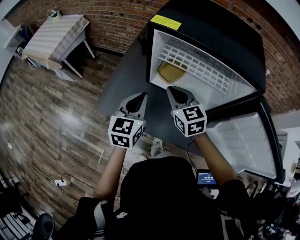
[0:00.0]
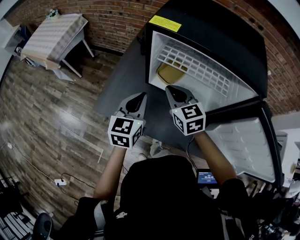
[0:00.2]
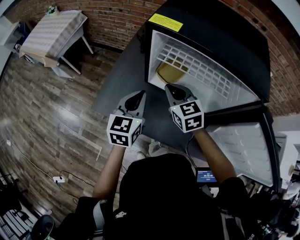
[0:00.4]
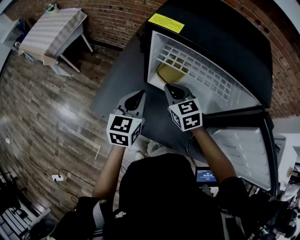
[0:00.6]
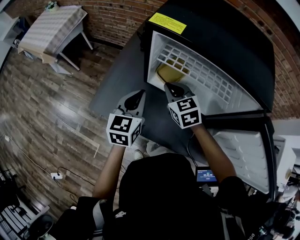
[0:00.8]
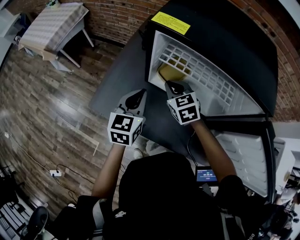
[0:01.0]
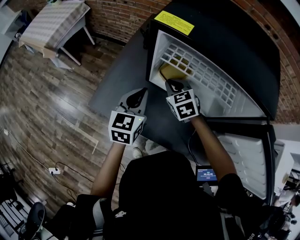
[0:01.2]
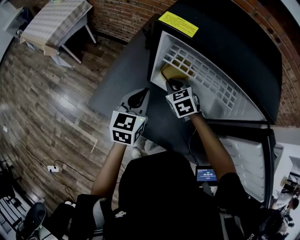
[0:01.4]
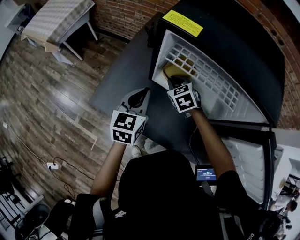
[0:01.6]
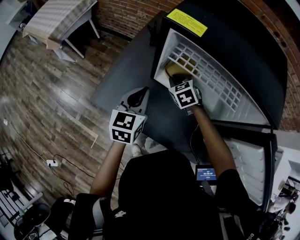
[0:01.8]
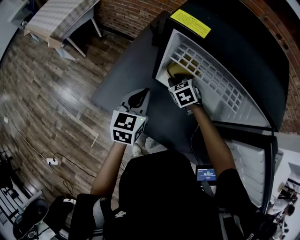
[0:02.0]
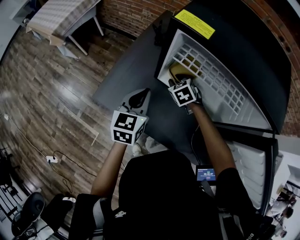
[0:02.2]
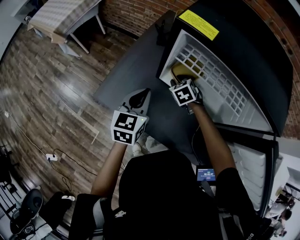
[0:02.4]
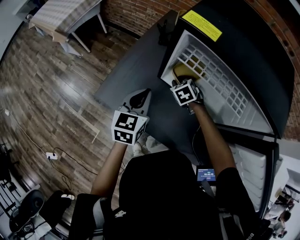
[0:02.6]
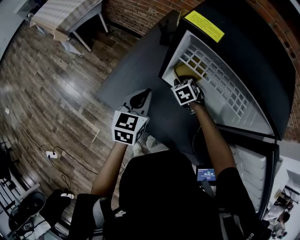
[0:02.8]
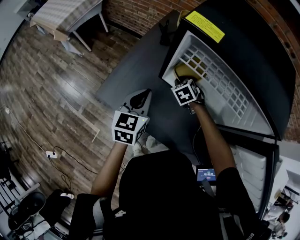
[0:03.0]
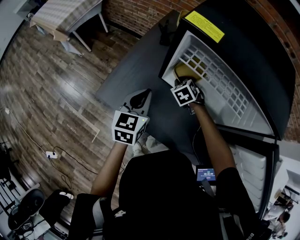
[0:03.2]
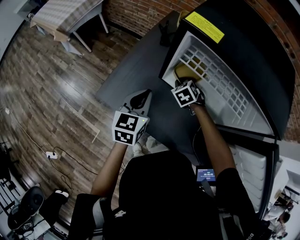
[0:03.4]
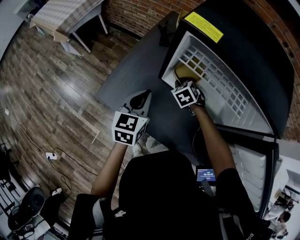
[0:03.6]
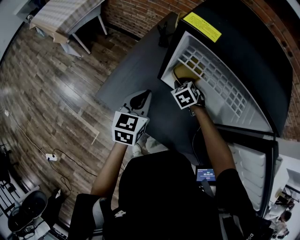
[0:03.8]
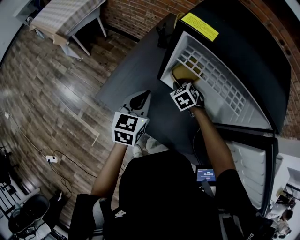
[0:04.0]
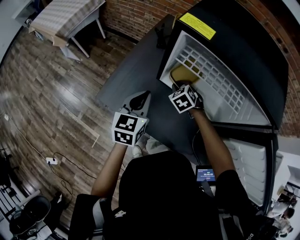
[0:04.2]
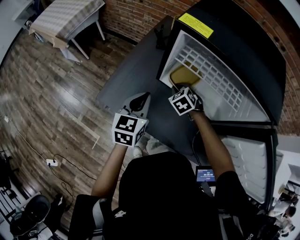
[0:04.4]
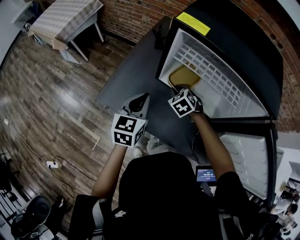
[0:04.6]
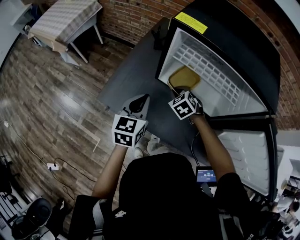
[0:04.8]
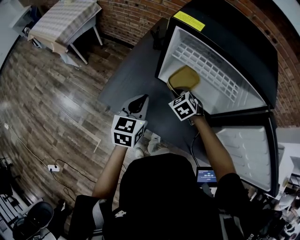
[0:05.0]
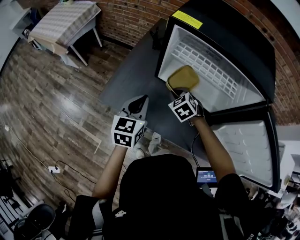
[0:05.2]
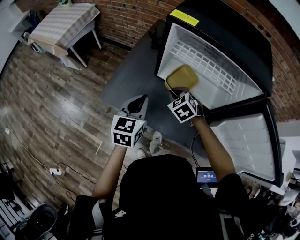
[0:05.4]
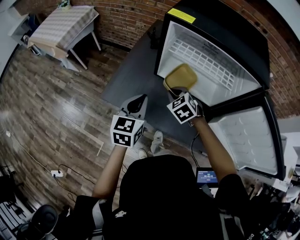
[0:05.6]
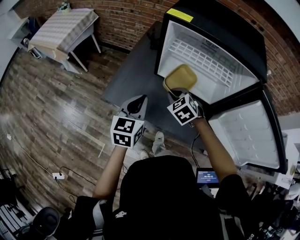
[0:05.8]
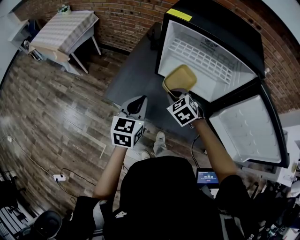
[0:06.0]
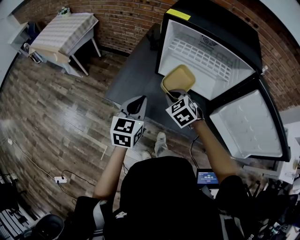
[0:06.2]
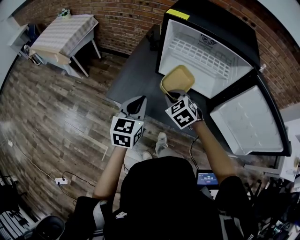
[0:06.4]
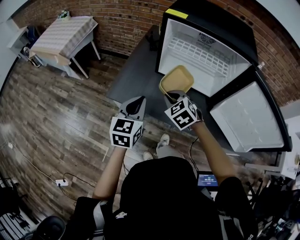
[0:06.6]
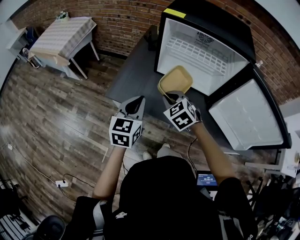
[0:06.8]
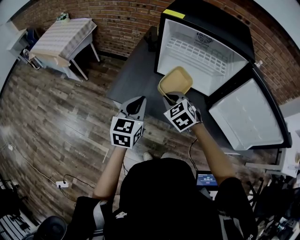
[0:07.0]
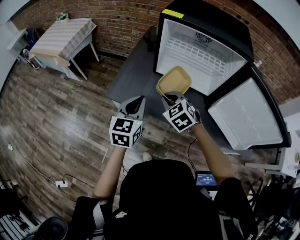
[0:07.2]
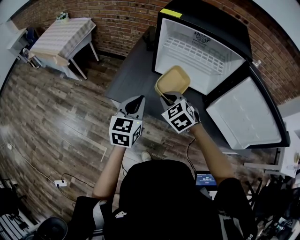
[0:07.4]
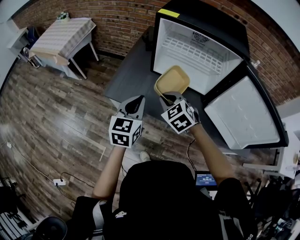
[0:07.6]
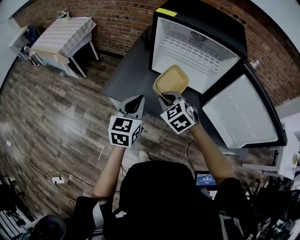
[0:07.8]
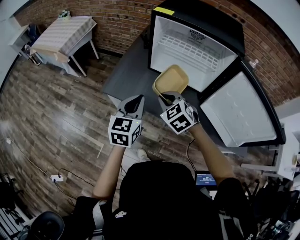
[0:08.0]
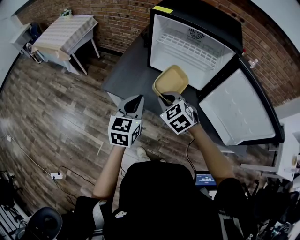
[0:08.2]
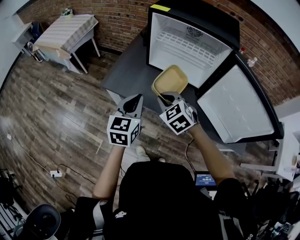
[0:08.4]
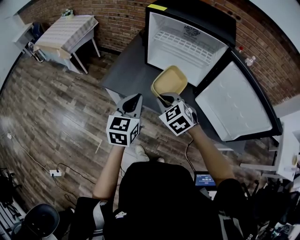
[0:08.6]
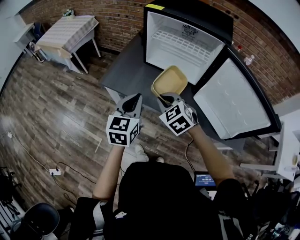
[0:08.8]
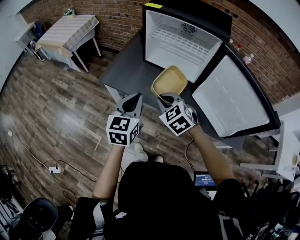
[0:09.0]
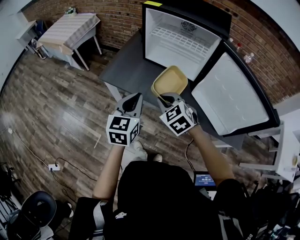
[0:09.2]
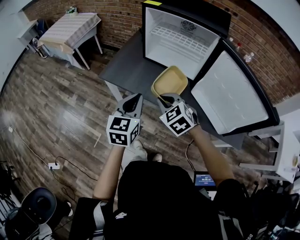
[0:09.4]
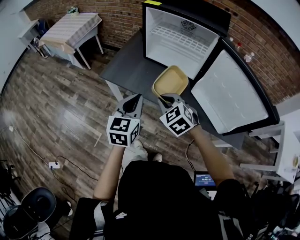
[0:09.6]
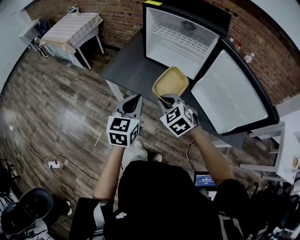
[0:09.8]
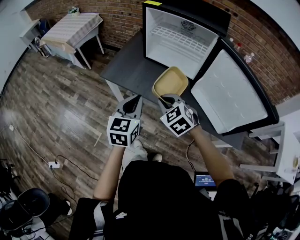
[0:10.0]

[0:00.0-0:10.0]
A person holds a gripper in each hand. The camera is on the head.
0:00.0 to 0:01.4: The left gripper moves forward, about 5 cm. The right gripper travels downward and forward by about 15 cm, and rotates about 20 degrees.
0:01.4 to 0:02.8: The right gripper heads downward, covering approximately 10 cm.
0:02.8 to 0:04.2: The grippers move only a little.
0:04.2 to 0:05.8: The left gripper shifts approximately 10 cm backward. The right gripper shifts about 15 cm backward and upward.
0:05.8 to 0:07.2: Both grippers move backward, approximately 10 cm.
0:07.2 to 0:08.6: Both grippers travel together backward and to the right, some 10 cm.
0:08.6 to 0:10.0: The grippers both shift backward by approximately 10 cm.

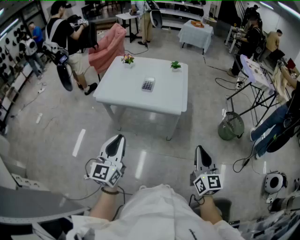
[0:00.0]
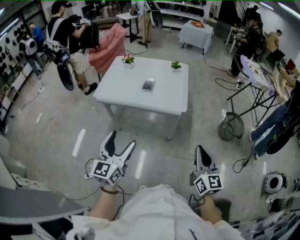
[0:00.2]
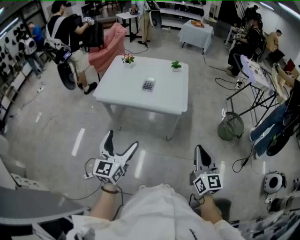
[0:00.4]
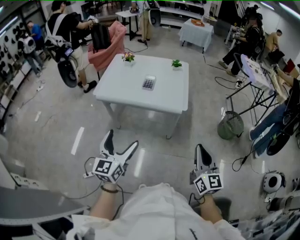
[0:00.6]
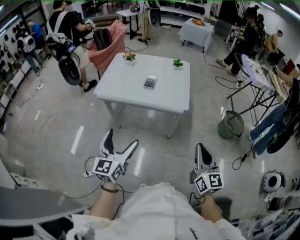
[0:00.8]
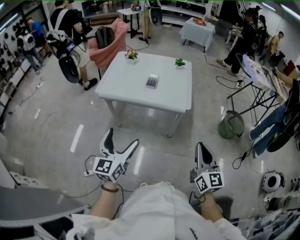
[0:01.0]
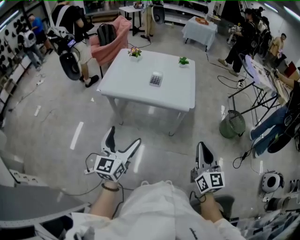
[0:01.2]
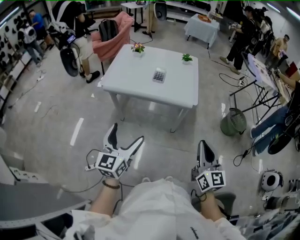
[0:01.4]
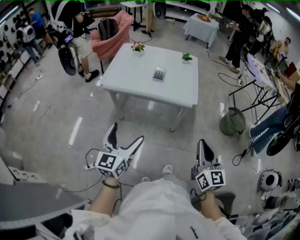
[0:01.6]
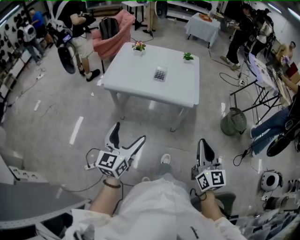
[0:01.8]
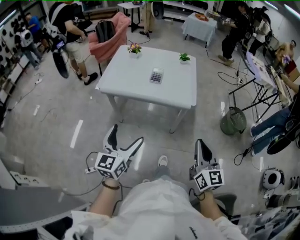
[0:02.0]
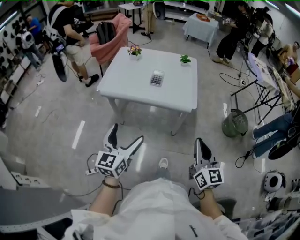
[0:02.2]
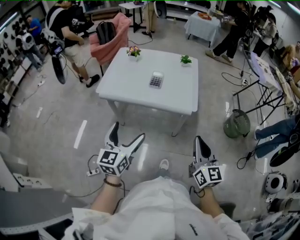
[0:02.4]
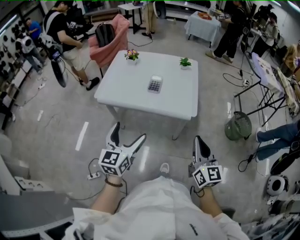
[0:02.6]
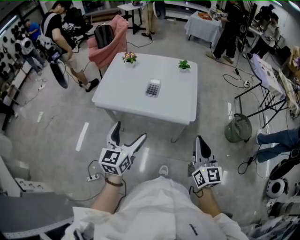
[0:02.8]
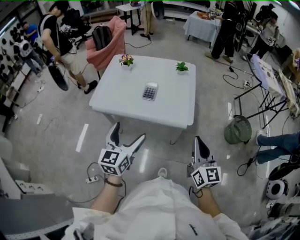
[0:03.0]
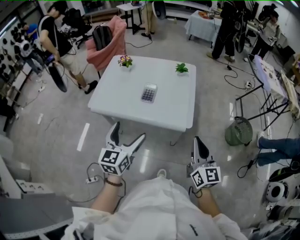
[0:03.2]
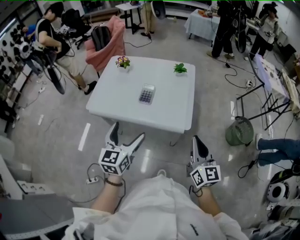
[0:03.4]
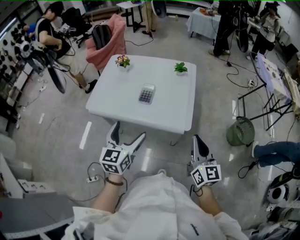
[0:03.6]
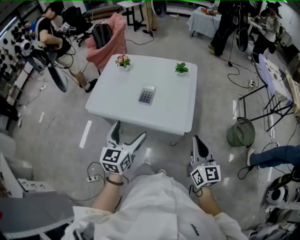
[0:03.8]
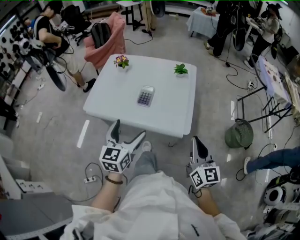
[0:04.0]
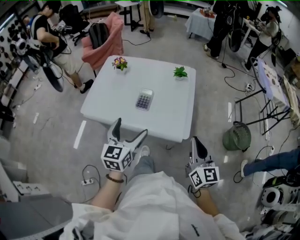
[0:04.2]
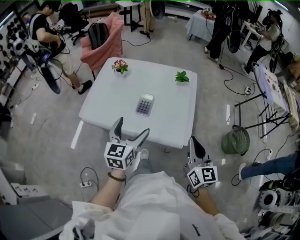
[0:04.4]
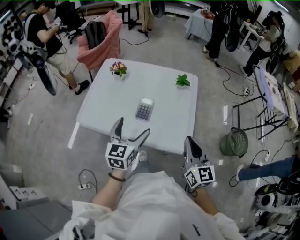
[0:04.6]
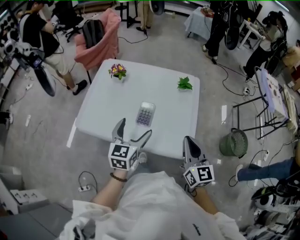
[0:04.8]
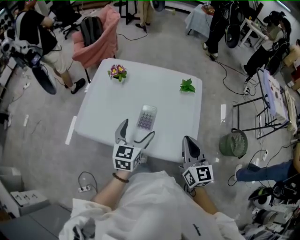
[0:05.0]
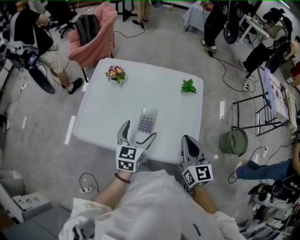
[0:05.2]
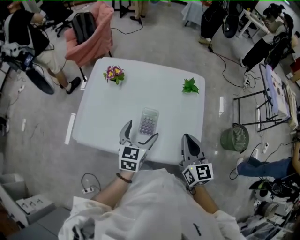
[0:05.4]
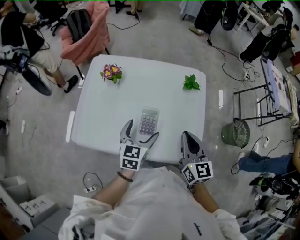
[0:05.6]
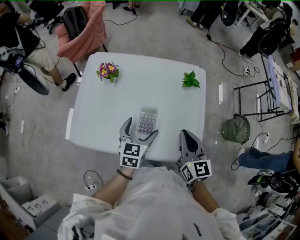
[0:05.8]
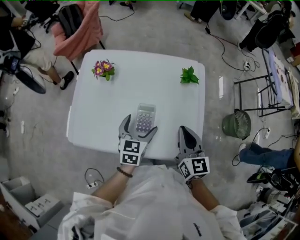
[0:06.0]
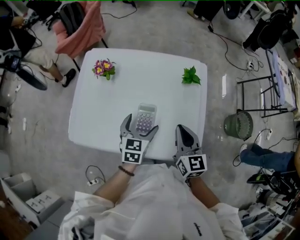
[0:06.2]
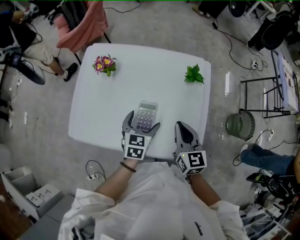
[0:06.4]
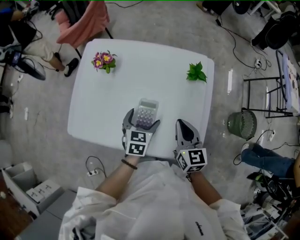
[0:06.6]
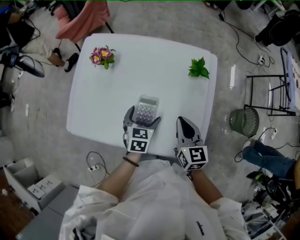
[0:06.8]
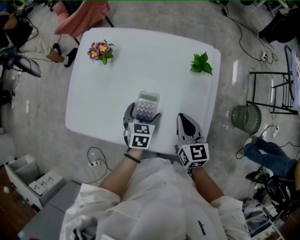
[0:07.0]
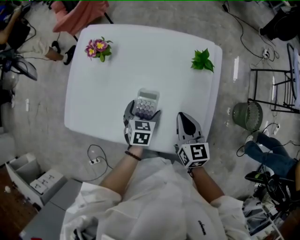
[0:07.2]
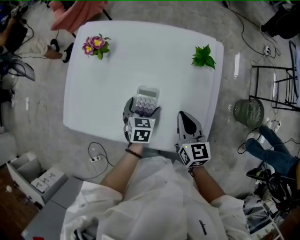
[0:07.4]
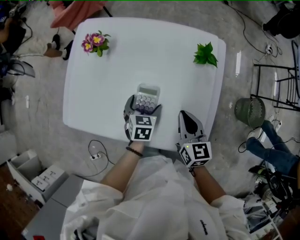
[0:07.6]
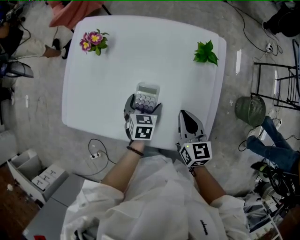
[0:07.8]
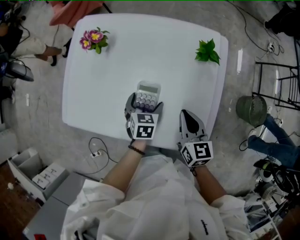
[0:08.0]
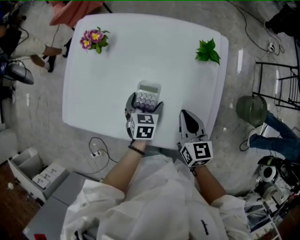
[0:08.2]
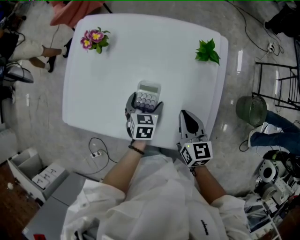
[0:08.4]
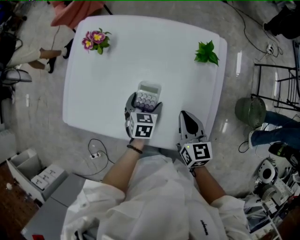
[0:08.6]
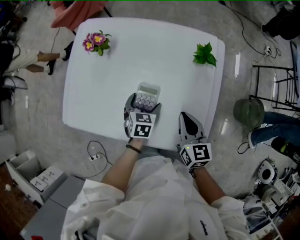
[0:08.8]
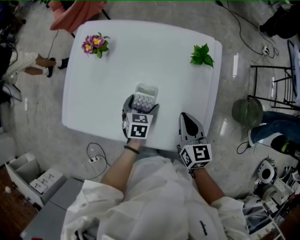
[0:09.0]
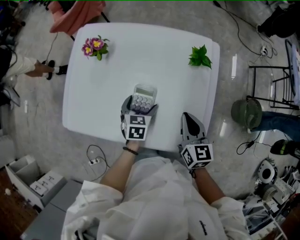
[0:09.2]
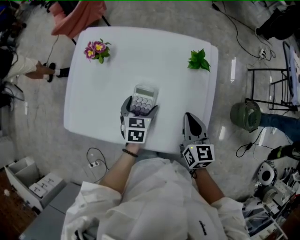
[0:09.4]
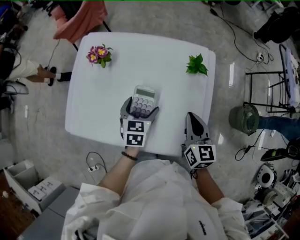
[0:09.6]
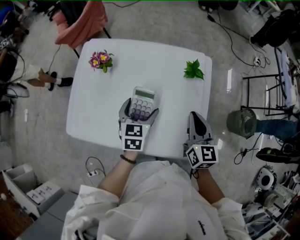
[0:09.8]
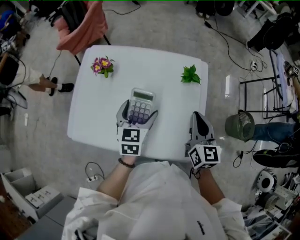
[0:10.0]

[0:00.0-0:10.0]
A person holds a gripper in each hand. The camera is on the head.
0:00.0 to 0:01.4: The grippers both shift to the left by about 10 cm. The left gripper opens its fingers.
0:01.4 to 0:02.8: The two grippers go about 15 cm forward.
0:02.8 to 0:04.2: The two grippers go about 15 cm forward.
0:04.2 to 0:05.8: The right gripper travels forward and to the left by some 30 cm. Meanwhile the left gripper goes some 30 cm forward and downward.
0:05.8 to 0:07.2: The right gripper travels downward and forward by about 10 cm. Meanwhile the left gripper is displaced downward by approximately 15 cm, and changes its angle by some 20 degrees.
0:07.2 to 0:08.6: The grippers make only small movements.
0:08.6 to 0:10.0: The right gripper shifts approximately 15 cm upward and to the right. Meanwhile the left gripper shifts approximately 20 cm upward, and turns by about 20 degrees.

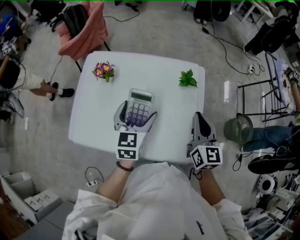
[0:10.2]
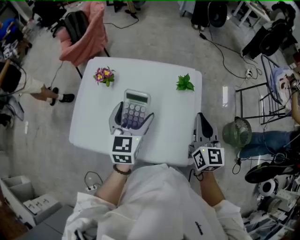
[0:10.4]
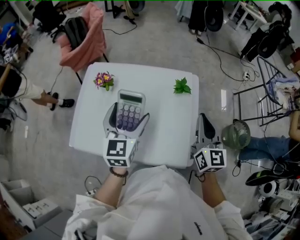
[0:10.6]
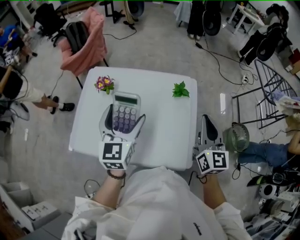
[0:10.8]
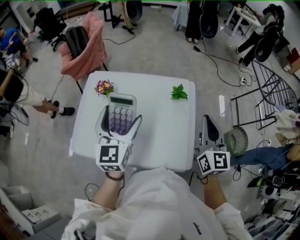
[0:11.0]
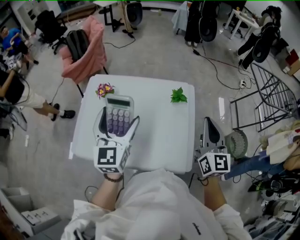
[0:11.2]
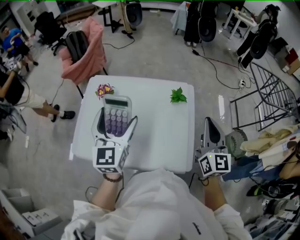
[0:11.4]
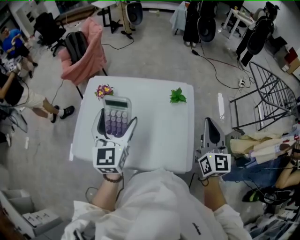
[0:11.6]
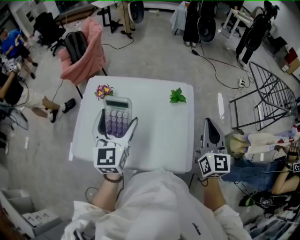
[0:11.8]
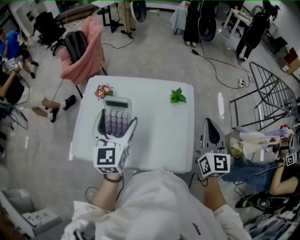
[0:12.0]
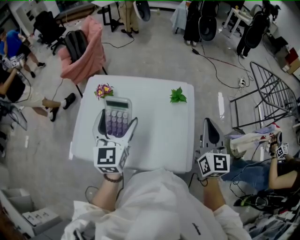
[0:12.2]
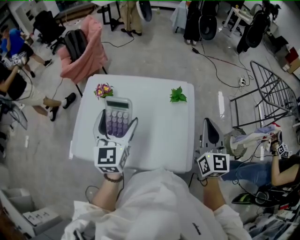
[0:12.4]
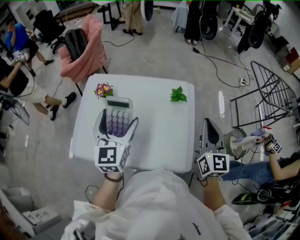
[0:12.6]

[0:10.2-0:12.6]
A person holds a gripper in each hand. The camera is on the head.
0:10.2 to 0:11.4: The left gripper travels upward by approximately 15 cm, and changes its angle by approximately 20 degrees, while the right gripper moves upward and to the right, about 10 cm.
0:11.4 to 0:12.6: The grippers make only small movements.

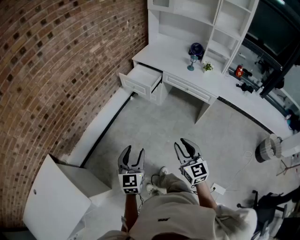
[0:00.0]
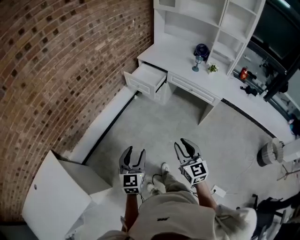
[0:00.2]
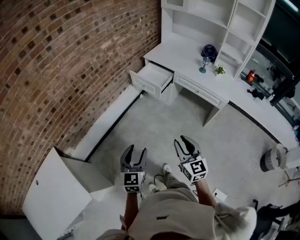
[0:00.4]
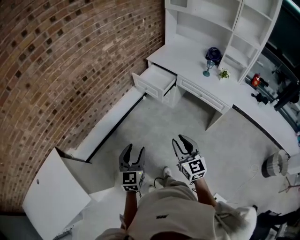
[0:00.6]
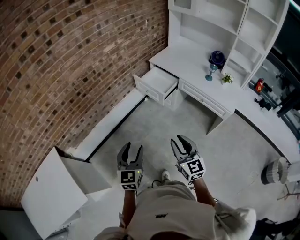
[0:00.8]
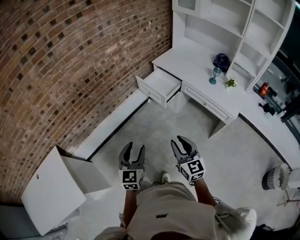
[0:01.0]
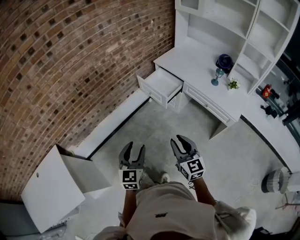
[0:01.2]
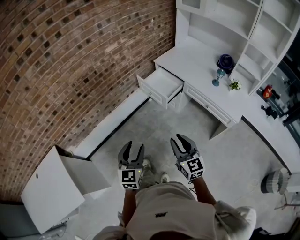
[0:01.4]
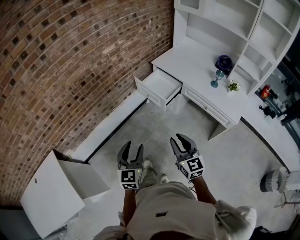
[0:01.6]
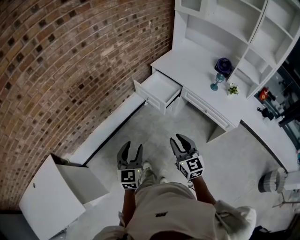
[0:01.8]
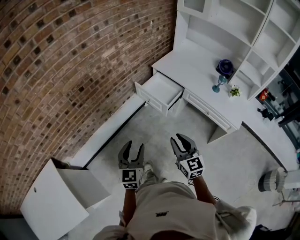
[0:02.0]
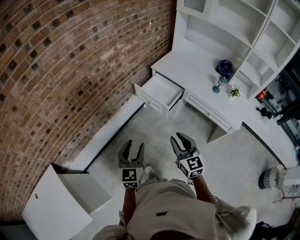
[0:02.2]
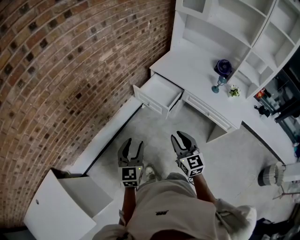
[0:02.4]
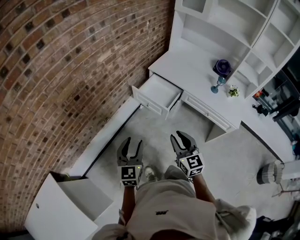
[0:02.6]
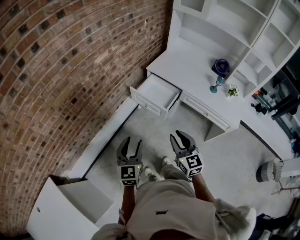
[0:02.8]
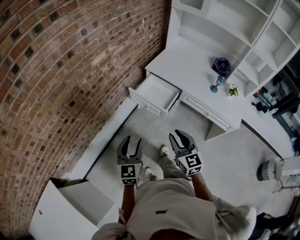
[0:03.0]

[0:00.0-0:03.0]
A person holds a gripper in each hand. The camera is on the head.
0:00.0 to 0:01.6: The grippers both shift forward by some 20 cm.
0:01.6 to 0:03.0: Both grippers move forward, approximately 20 cm.
